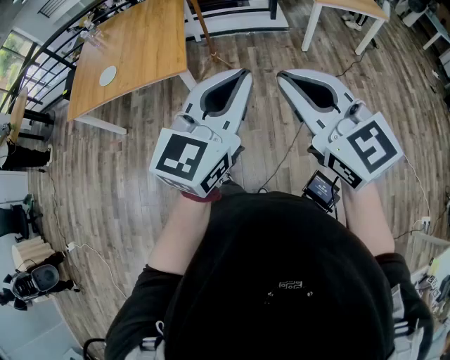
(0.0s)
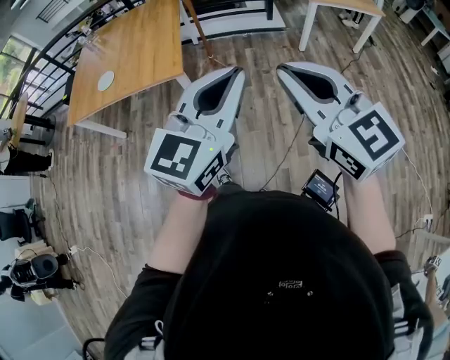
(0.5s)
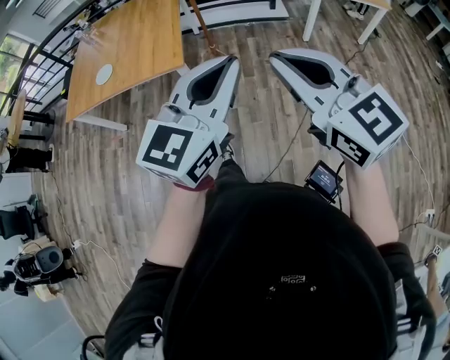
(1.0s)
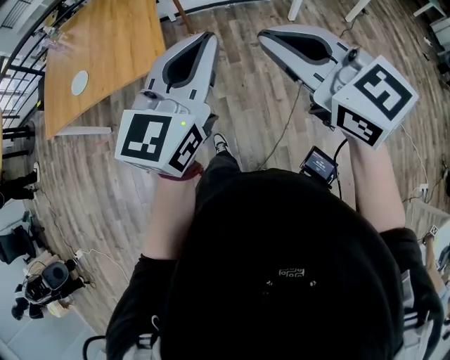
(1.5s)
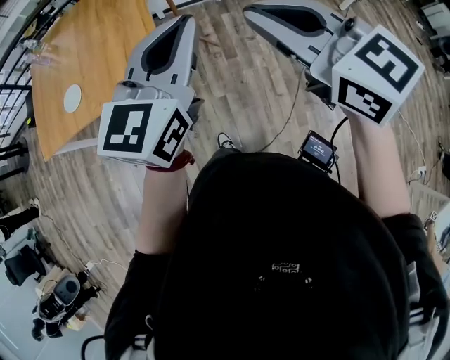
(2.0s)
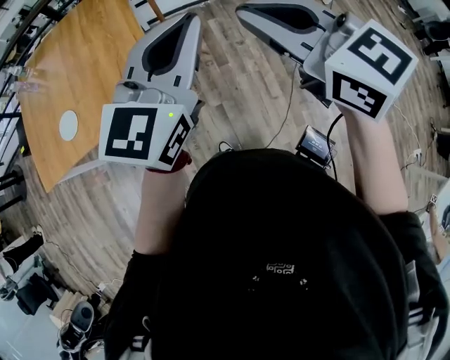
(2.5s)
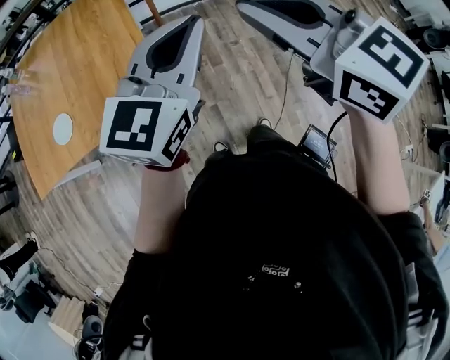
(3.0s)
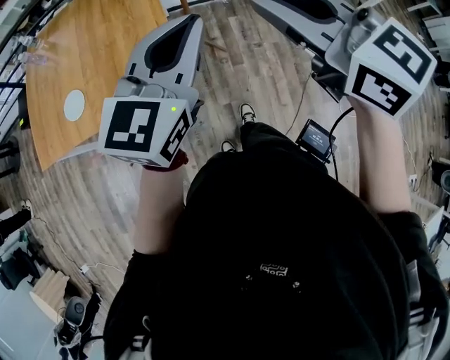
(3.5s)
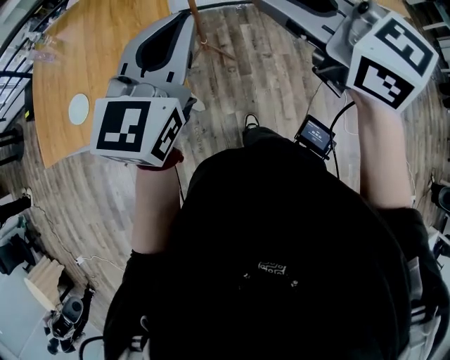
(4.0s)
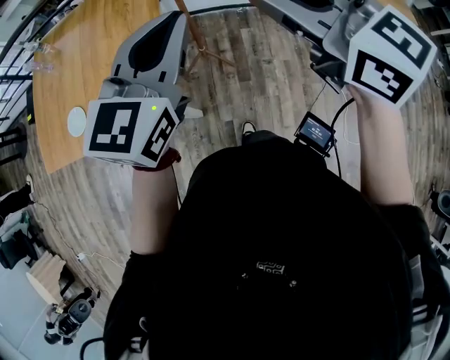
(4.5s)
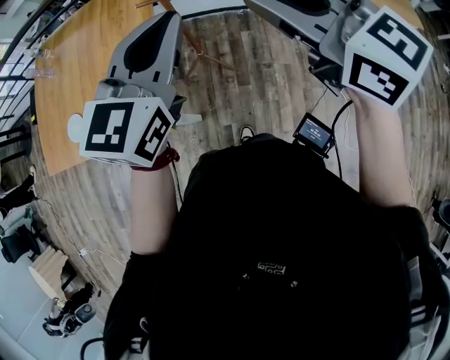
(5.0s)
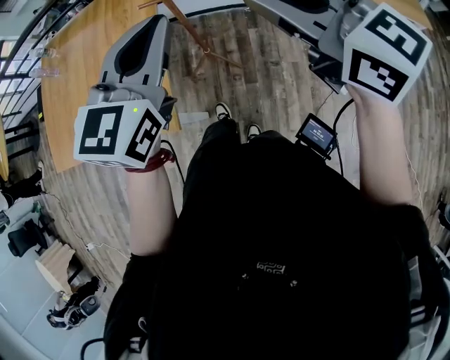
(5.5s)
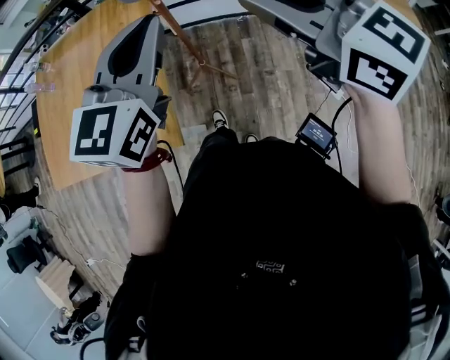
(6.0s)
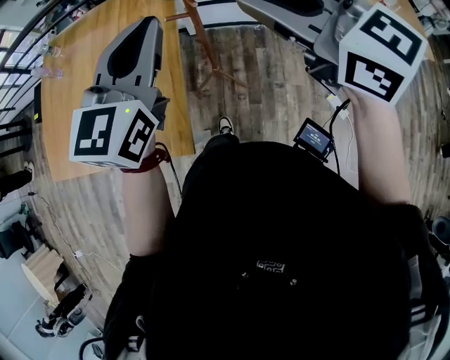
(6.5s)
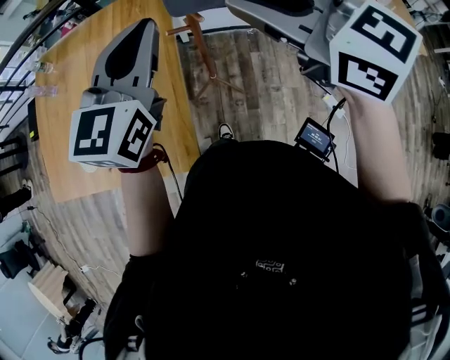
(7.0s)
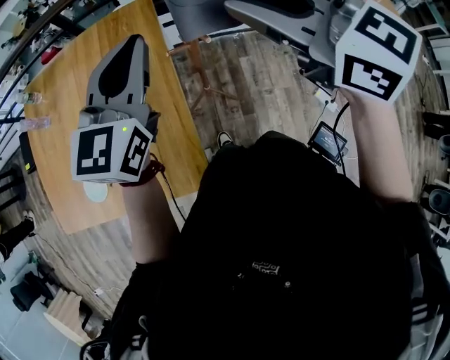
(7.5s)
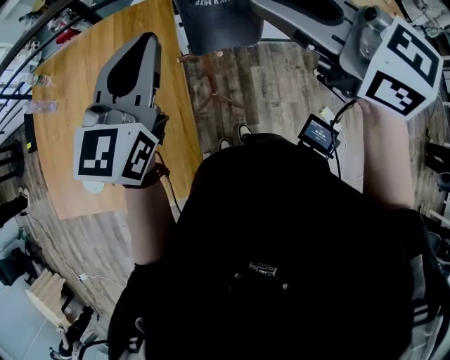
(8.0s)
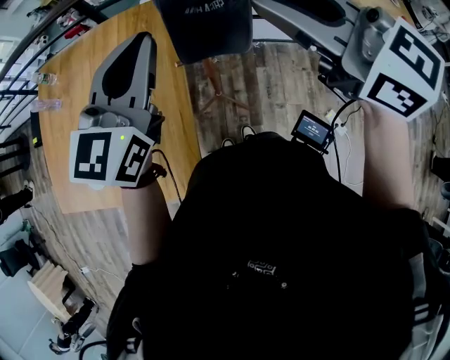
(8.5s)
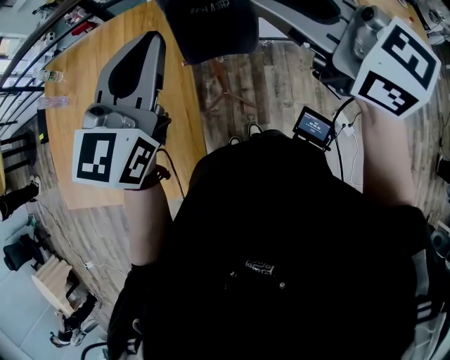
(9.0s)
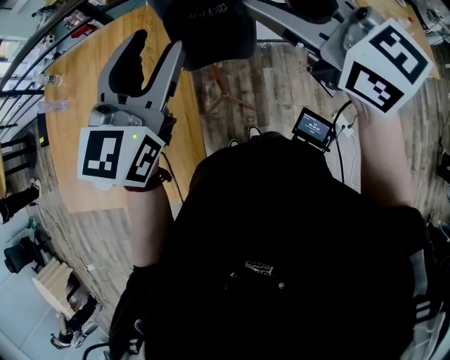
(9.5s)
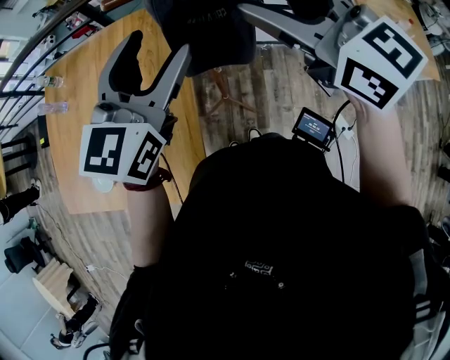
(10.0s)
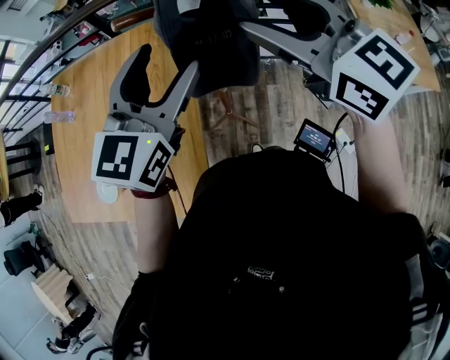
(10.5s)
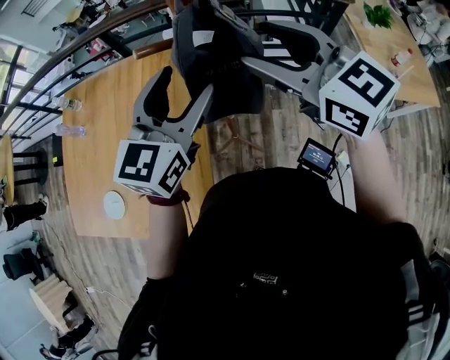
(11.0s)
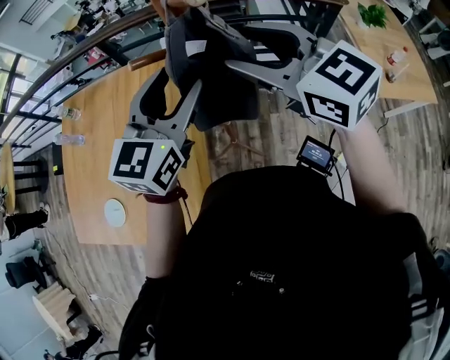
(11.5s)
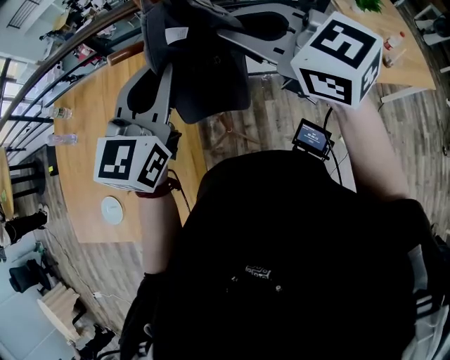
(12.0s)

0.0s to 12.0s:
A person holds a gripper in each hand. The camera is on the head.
0.0s to 2.0s: Both grippers move forward, about 30 cm.
2.0s to 4.0s: Both grippers move forward, about 20 cm.
4.0s to 6.0s: The right gripper heads to the right and forward, covering some 20 cm; the left gripper is displaced forward and to the right by approximately 15 cm.
6.0s to 8.0s: The two grippers go some 30 cm forward.
8.0s to 10.0s: The left gripper ends up roughly 5 cm from where it was, and opens; the right gripper opens up.
10.0s to 12.0s: The right gripper closes up. Meanwhile the left gripper closes its fingers.

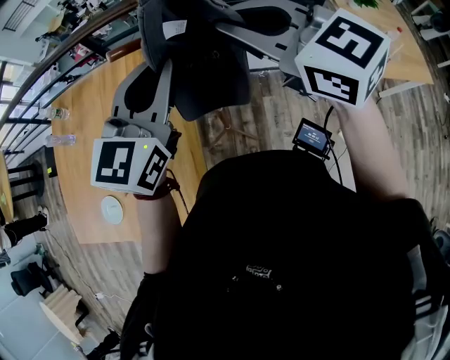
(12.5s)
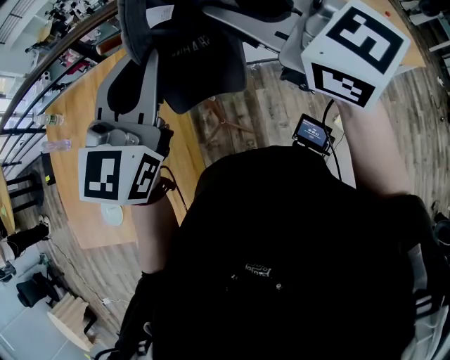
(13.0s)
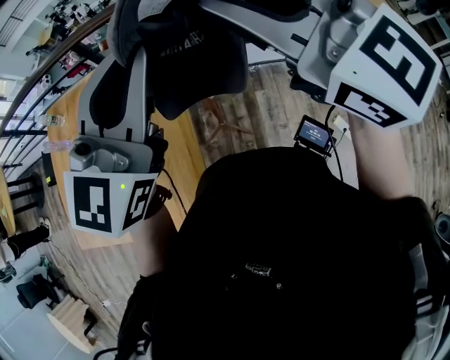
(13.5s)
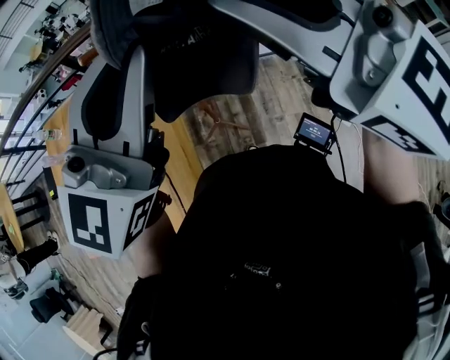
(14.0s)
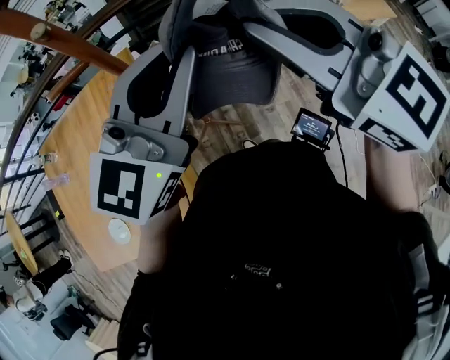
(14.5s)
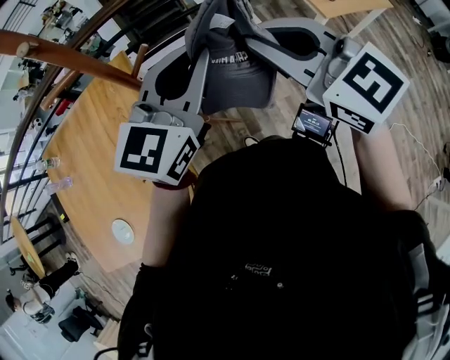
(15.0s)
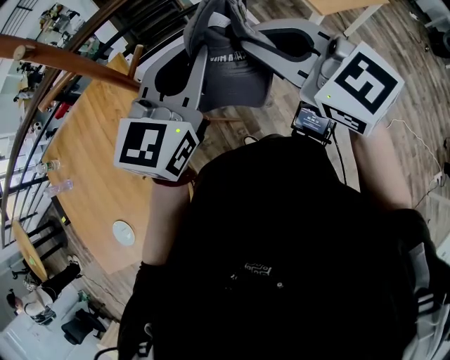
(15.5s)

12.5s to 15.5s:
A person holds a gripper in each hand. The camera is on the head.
12.5s to 14.0s: The right gripper is displaced backward and upward by approximately 15 cm. The left gripper moves upward and backward, approximately 15 cm.
14.0s to 15.5s: The grippers both shift to the right and downward by approximately 20 cm. The left gripper swivels about 20 degrees. Meanwhile the right gripper swivels about 20 degrees.

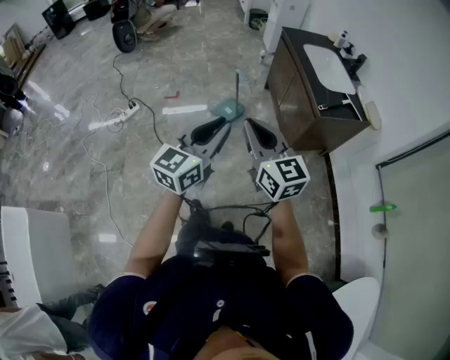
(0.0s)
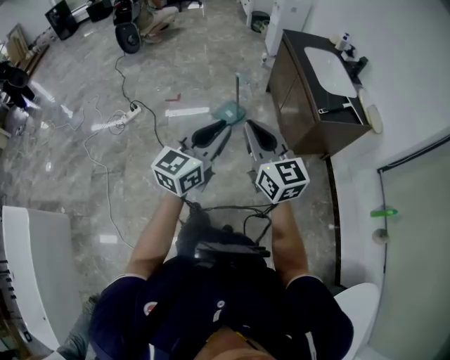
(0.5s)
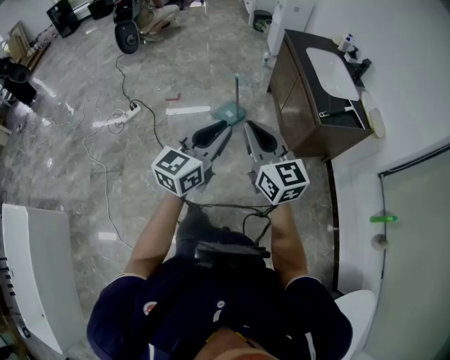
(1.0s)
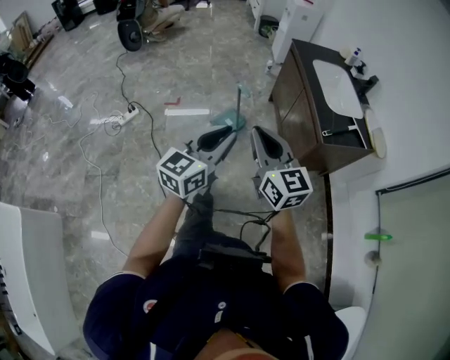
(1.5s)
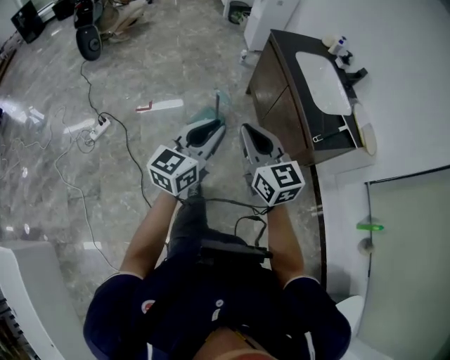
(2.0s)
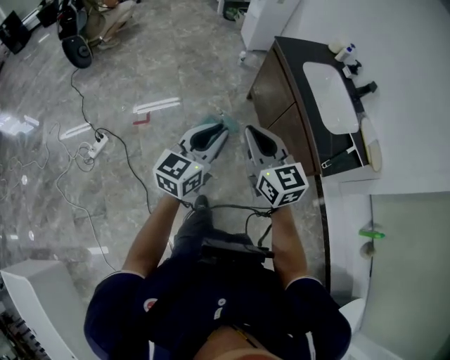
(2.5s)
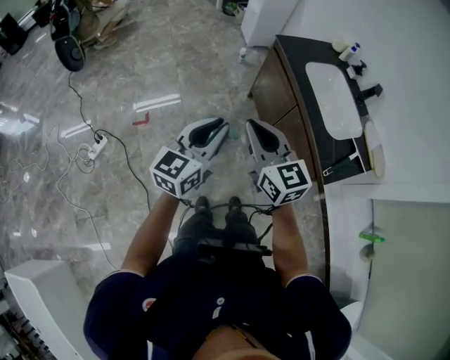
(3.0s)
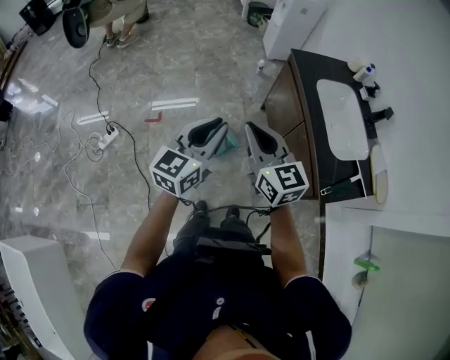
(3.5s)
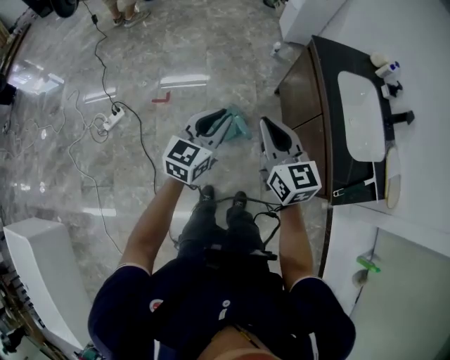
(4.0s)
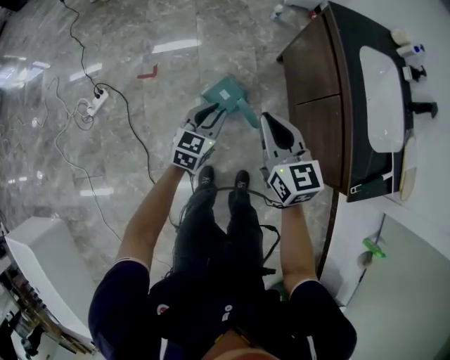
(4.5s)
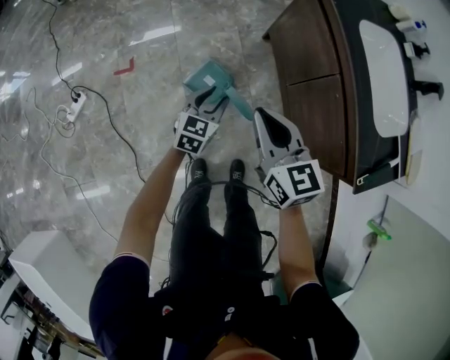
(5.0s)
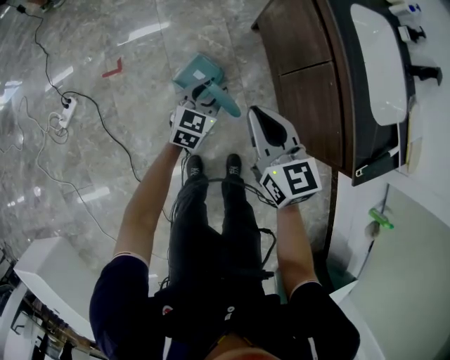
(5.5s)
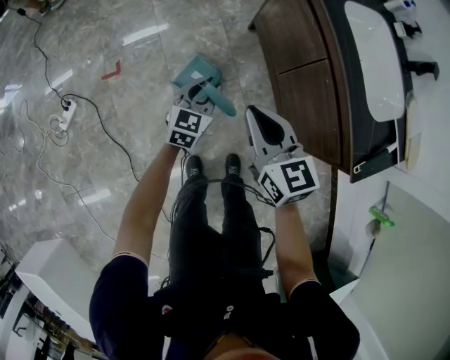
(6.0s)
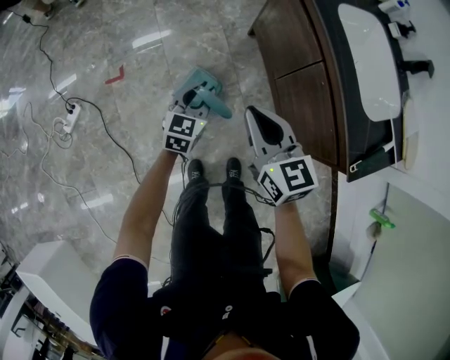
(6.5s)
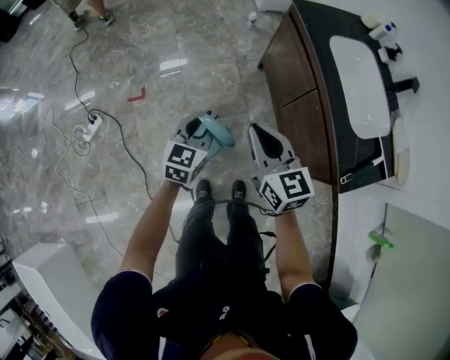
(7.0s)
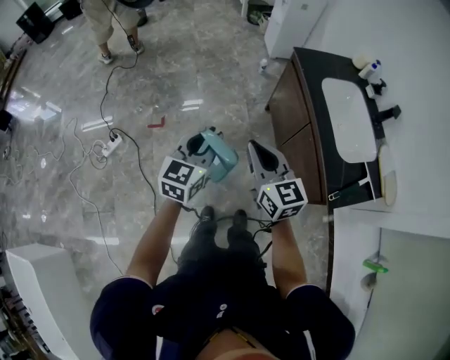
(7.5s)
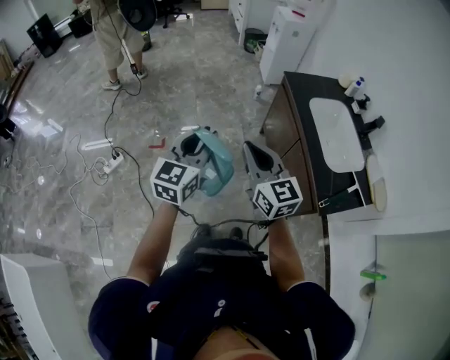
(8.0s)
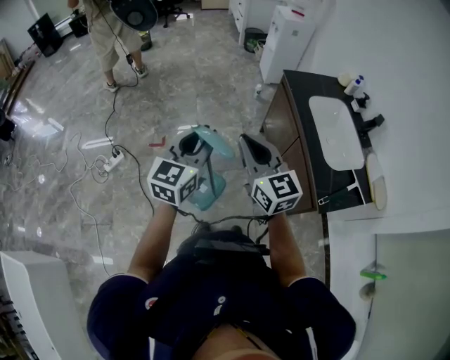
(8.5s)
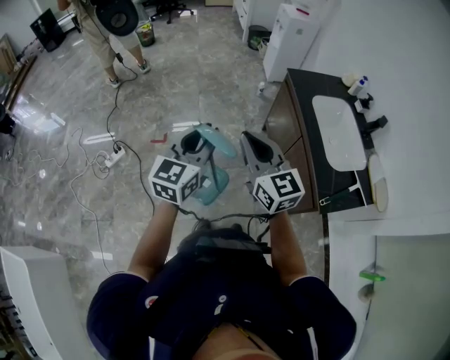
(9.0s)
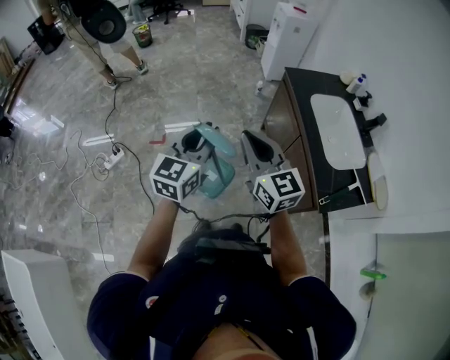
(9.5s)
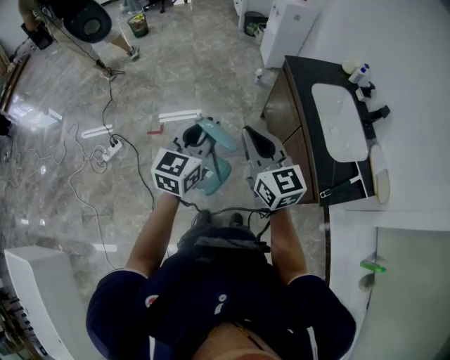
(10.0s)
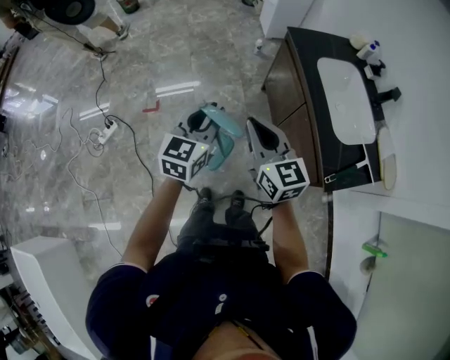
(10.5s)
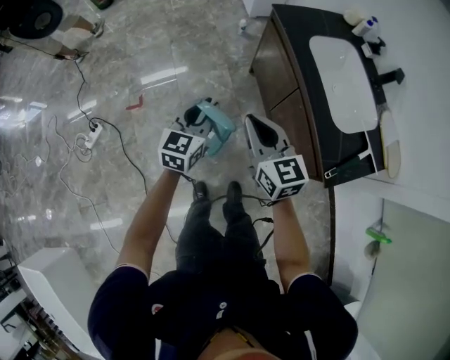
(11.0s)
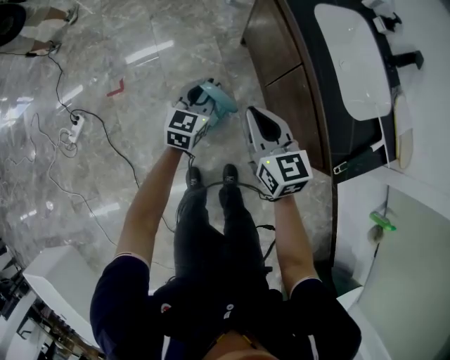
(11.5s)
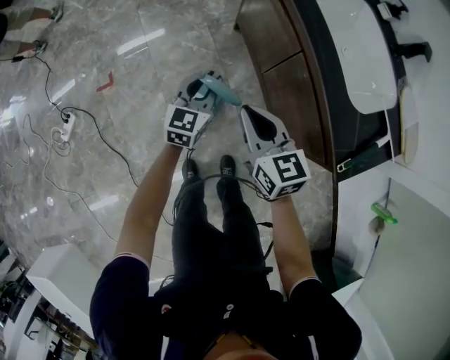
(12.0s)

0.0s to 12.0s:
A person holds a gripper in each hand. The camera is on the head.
0.0s to 2.0s: The grippers both shift forward by roughly 25 cm.
2.0s to 4.0s: The grippers both shift forward by approximately 25 cm.
4.0s to 6.0s: The left gripper travels downward by about 30 cm. The right gripper moves downward, approximately 20 cm.
6.0s to 8.0s: The left gripper goes approximately 40 cm upward, and swivels approximately 20 degrees. The right gripper heads upward, covering about 25 cm, and changes its angle by roughly 20 degrees.
8.0s to 10.0s: The grippers move only a little.
10.0s to 12.0s: The right gripper goes some 30 cm downward, and changes its angle by roughly 30 degrees; the left gripper is displaced downward and forward by about 40 cm.
